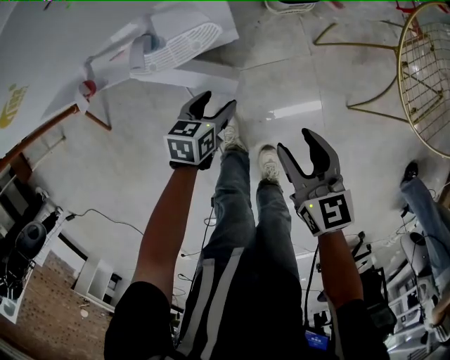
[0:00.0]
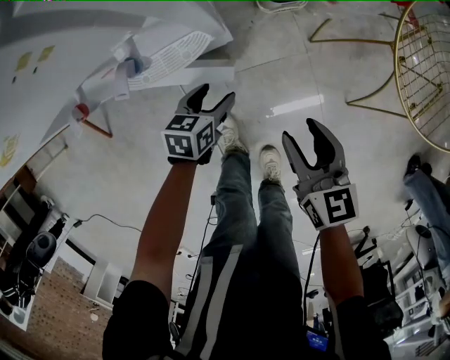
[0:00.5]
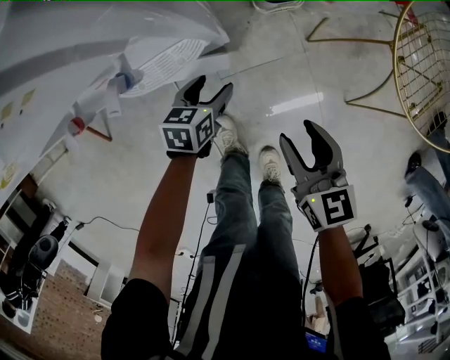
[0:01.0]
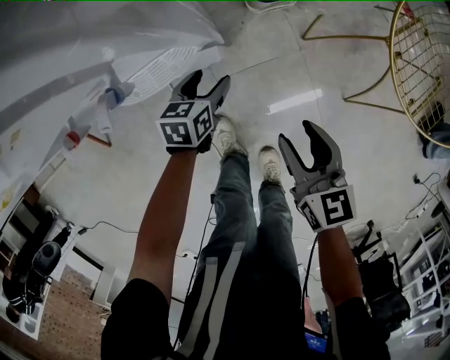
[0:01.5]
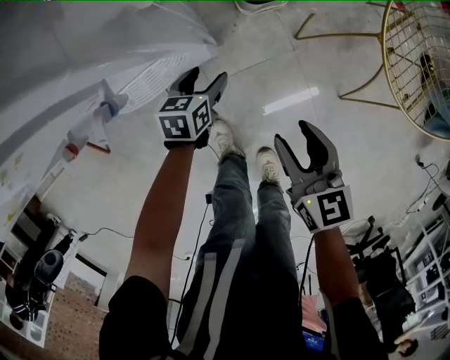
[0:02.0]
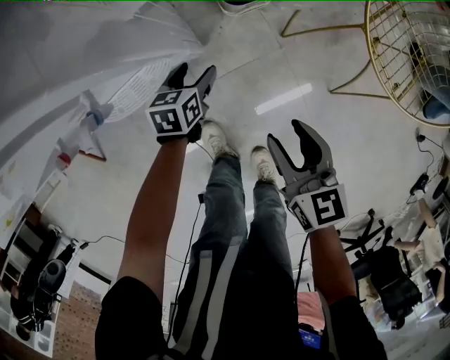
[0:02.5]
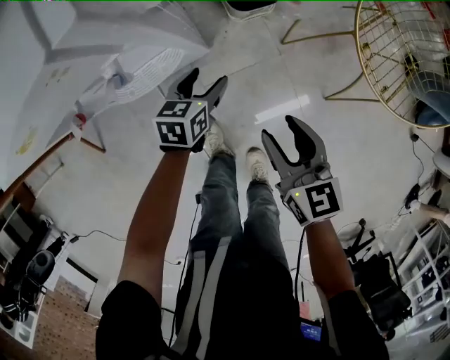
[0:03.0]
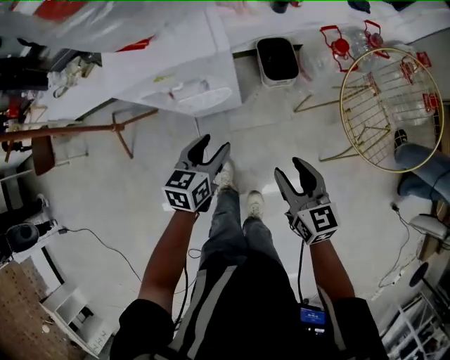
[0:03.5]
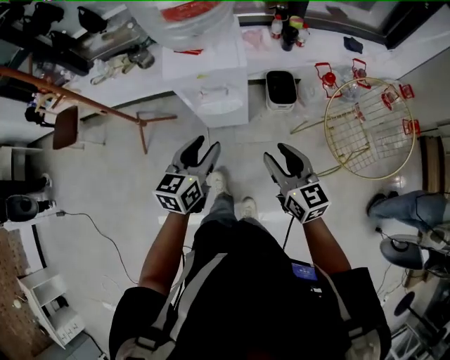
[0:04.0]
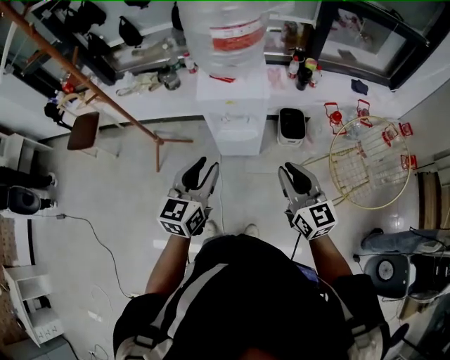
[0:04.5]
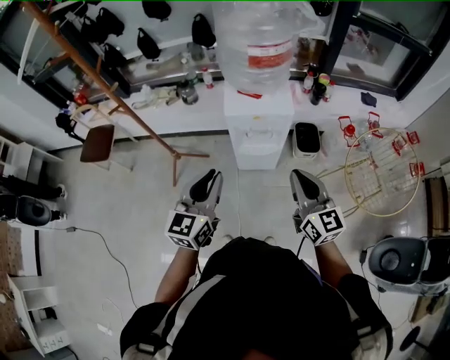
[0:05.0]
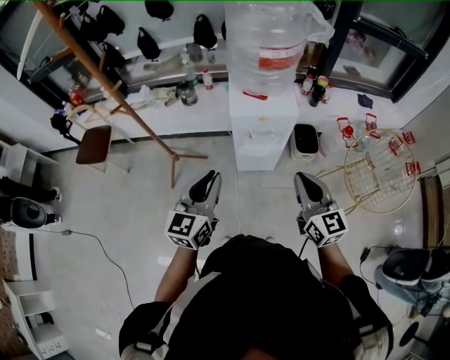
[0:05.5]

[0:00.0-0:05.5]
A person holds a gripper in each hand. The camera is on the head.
0:00.0 to 0:02.0: The right gripper is displaced forward by about 5 cm. Meanwhile the left gripper travels forward by some 10 cm.
0:02.0 to 0:03.5: The right gripper heads upward, covering roughly 20 cm, while the left gripper travels upward by approximately 35 cm, and changes its angle by about 20 degrees.
0:03.5 to 0:05.5: The grippers both shift upward and to the left by roughly 40 cm. The left gripper swivels approximately 40 degrees, and closes its fingers; the right gripper rotates about 30 degrees, and closes.

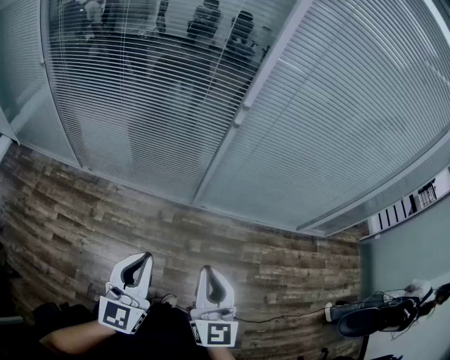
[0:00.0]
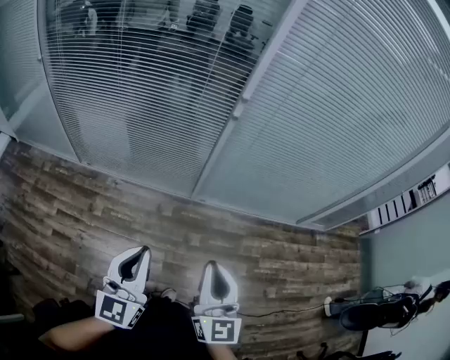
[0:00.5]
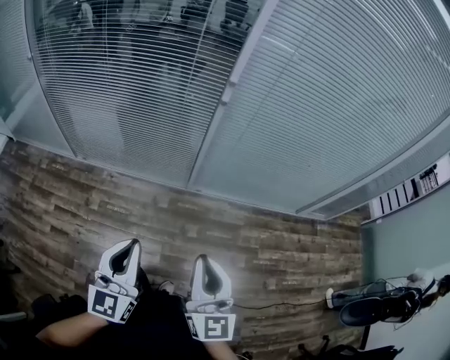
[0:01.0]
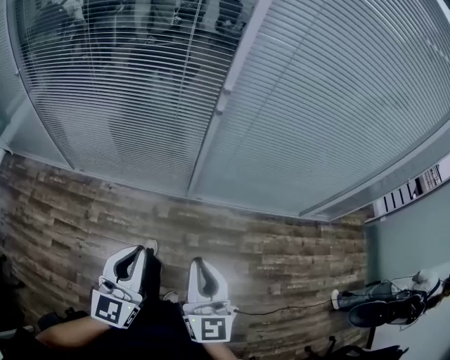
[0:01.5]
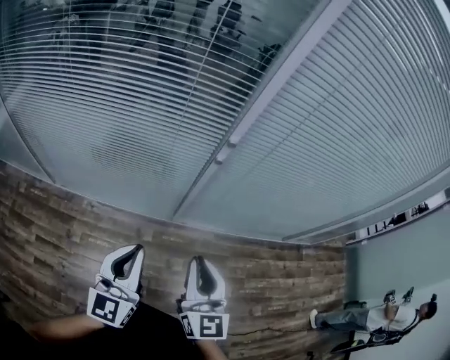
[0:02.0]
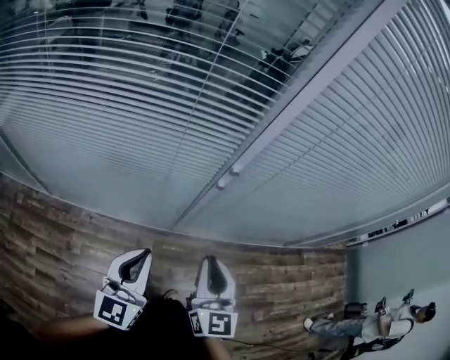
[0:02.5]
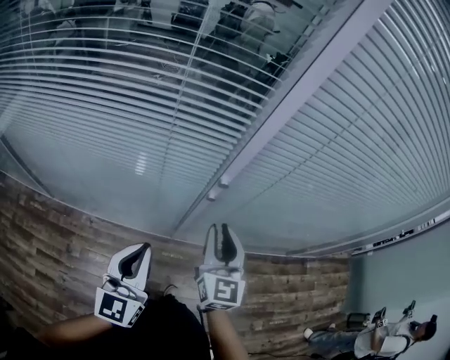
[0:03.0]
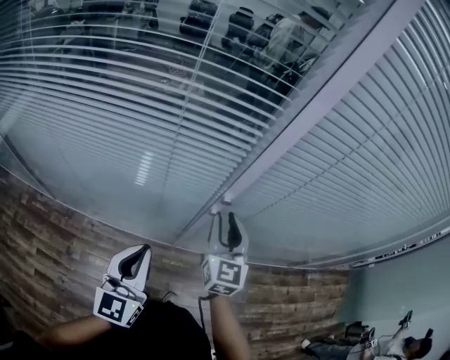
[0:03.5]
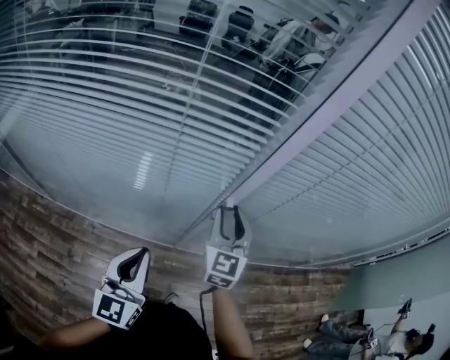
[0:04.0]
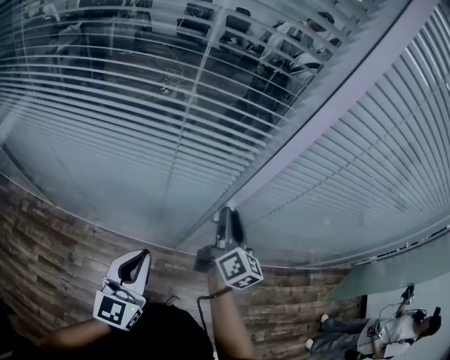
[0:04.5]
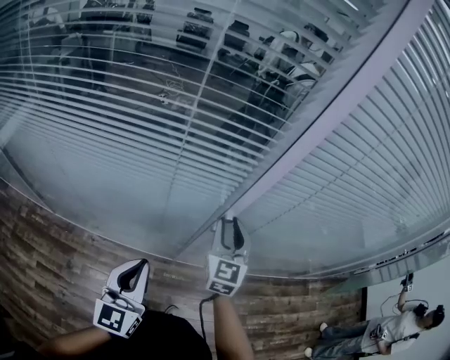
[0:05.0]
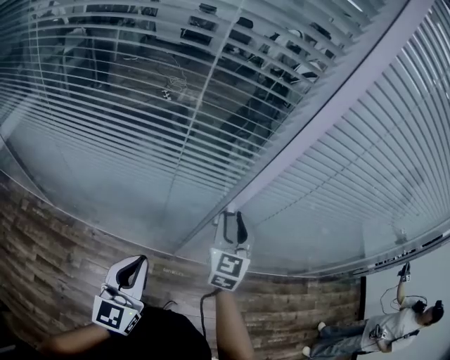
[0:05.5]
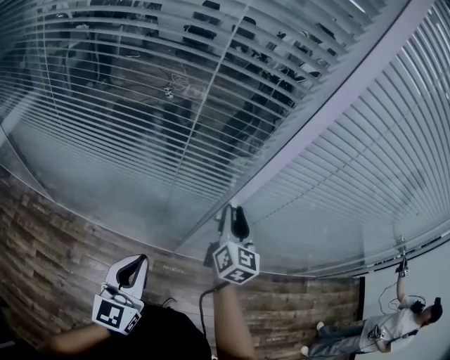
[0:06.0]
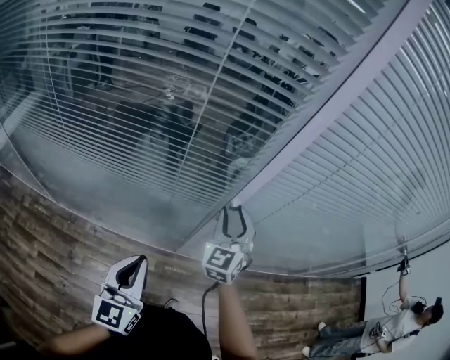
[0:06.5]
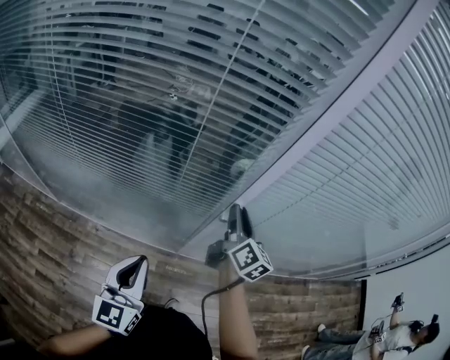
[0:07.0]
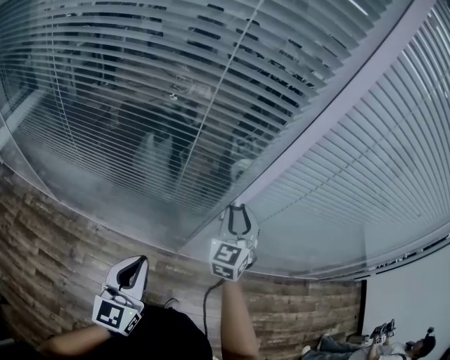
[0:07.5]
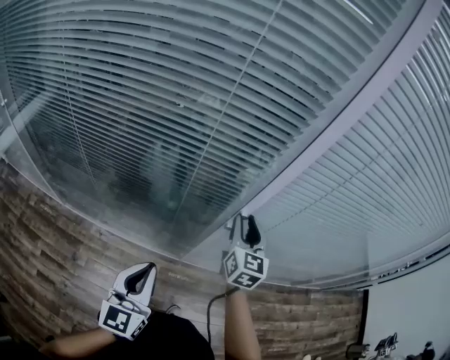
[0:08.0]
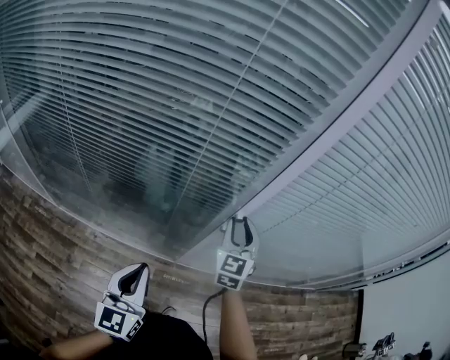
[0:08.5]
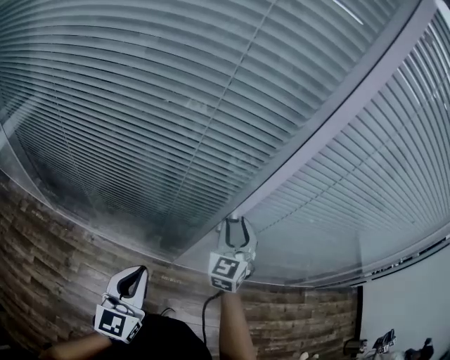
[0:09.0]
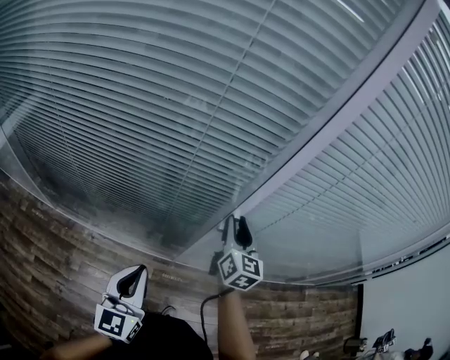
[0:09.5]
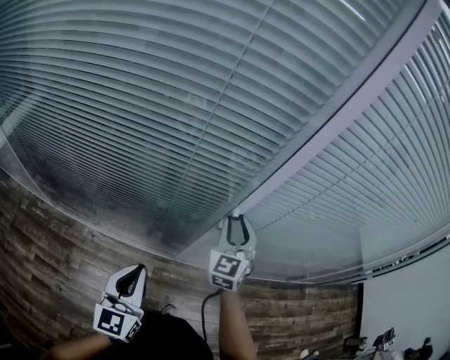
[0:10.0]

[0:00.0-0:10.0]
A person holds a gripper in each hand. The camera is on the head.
0:00.0 to 0:02.0: The grippers both shift forward by about 25 cm.
0:02.0 to 0:04.0: The right gripper moves forward, approximately 30 cm, and opens up. The left gripper travels forward by roughly 15 cm.
0:04.0 to 0:06.0: The right gripper changes its angle by some 30 degrees.
0:08.0 to 0:10.0: The right gripper turns by roughly 30 degrees.

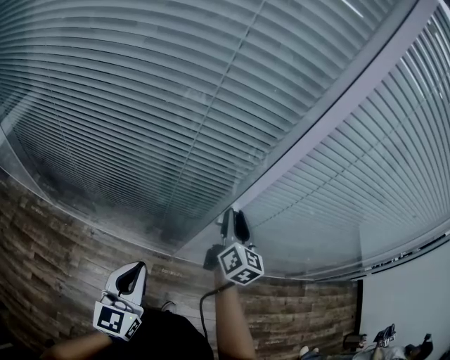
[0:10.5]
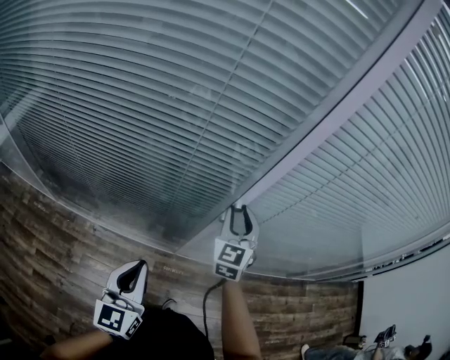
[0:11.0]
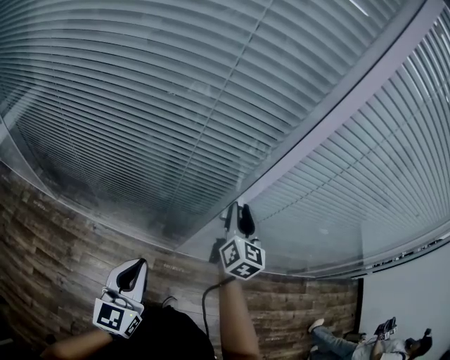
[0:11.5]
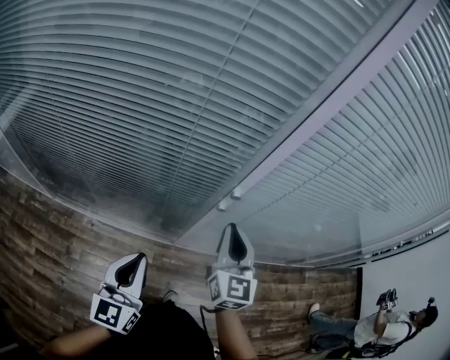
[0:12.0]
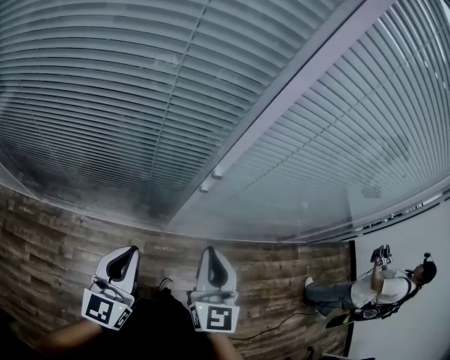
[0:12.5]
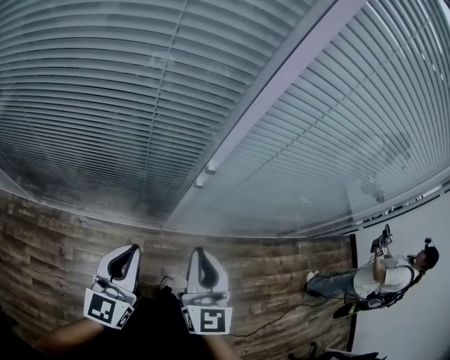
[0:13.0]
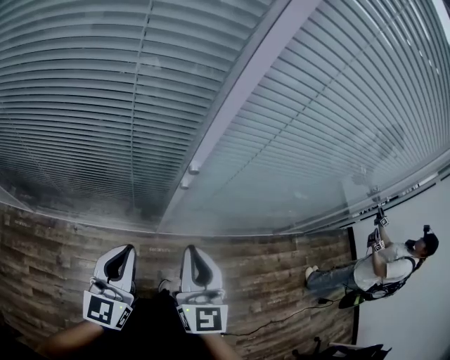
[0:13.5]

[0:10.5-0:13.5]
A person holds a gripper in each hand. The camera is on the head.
0:10.5 to 0:12.0: The right gripper shifts roughly 10 cm backward, changes its angle by about 20 degrees, and closes.
0:12.0 to 0:13.5: The left gripper heads to the right, covering some 5 cm. The right gripper shifts approximately 10 cm backward.

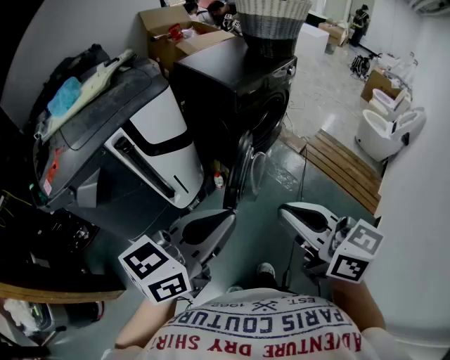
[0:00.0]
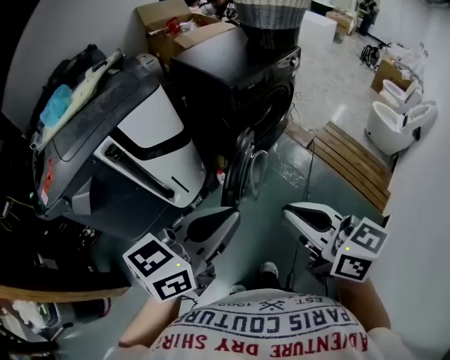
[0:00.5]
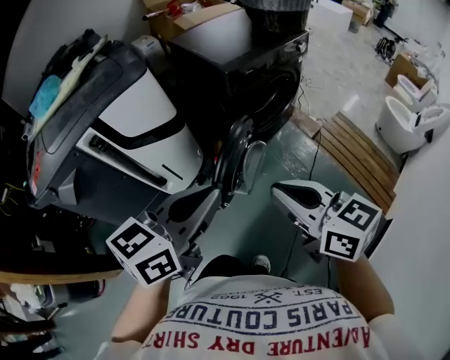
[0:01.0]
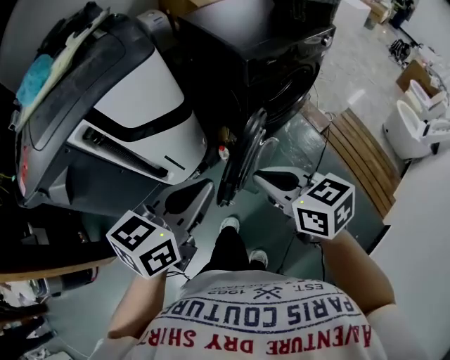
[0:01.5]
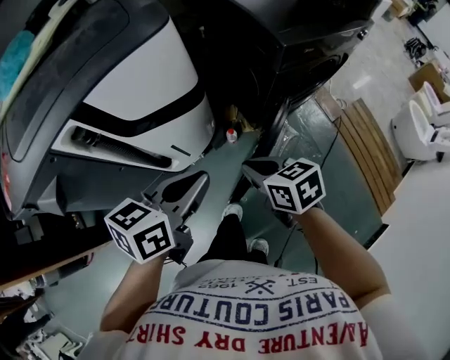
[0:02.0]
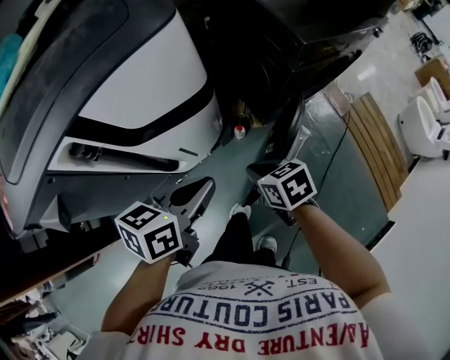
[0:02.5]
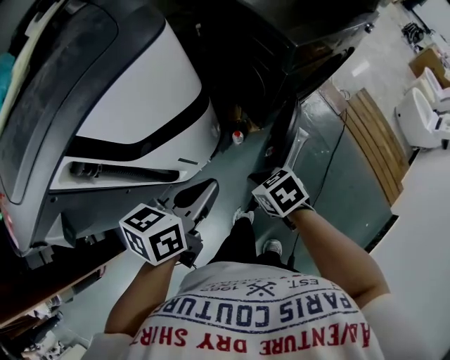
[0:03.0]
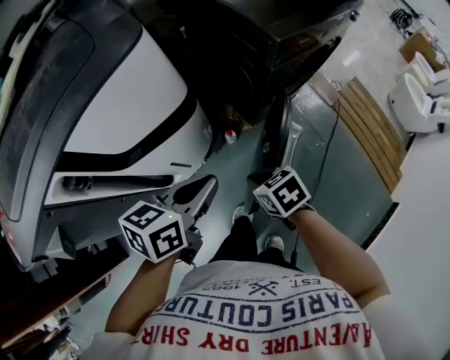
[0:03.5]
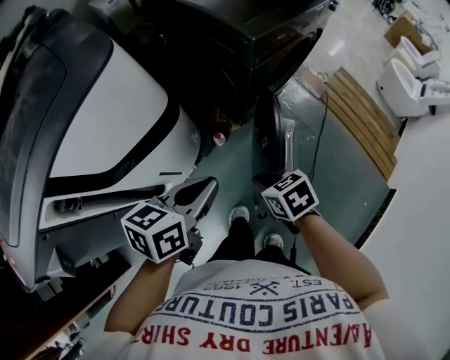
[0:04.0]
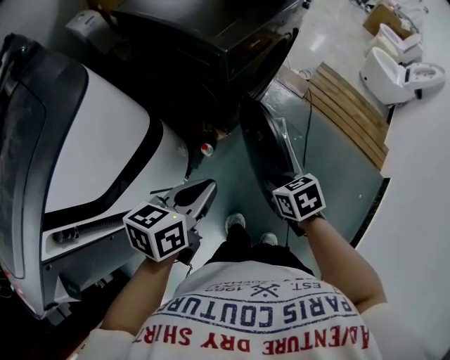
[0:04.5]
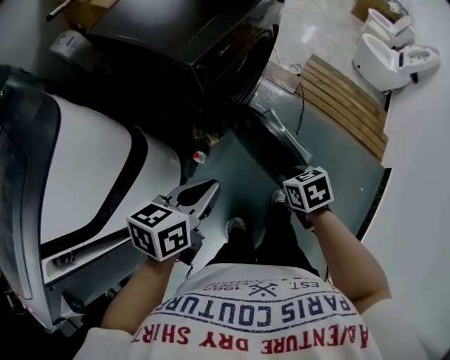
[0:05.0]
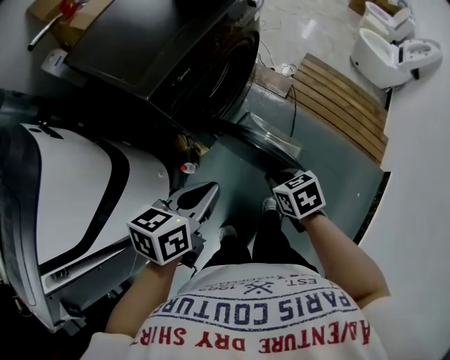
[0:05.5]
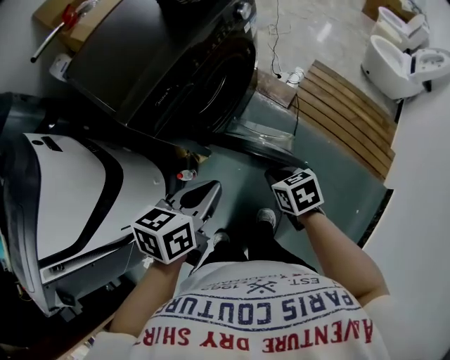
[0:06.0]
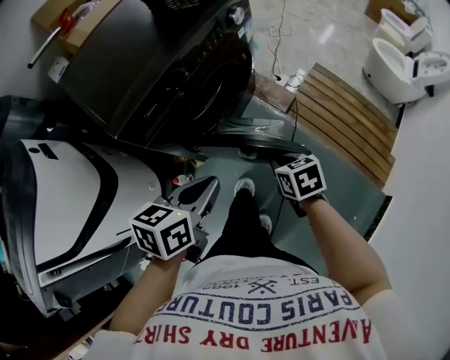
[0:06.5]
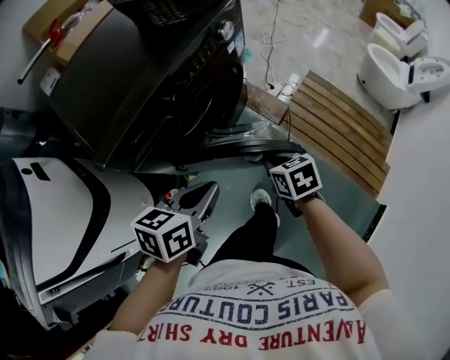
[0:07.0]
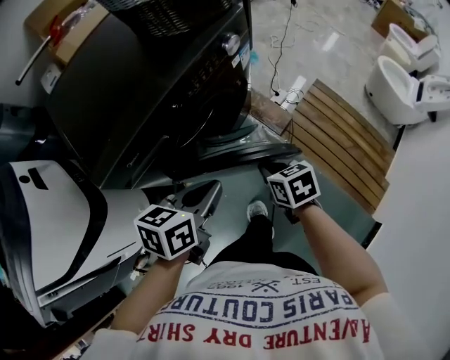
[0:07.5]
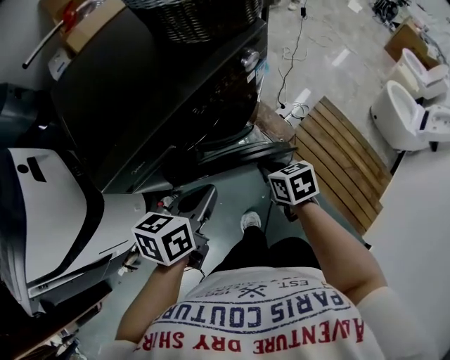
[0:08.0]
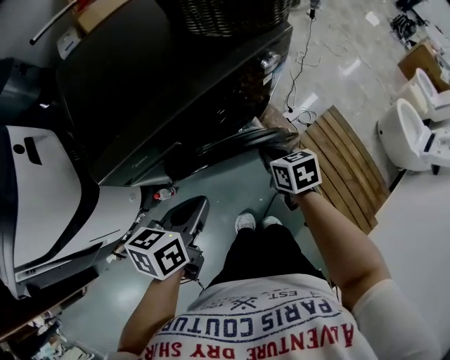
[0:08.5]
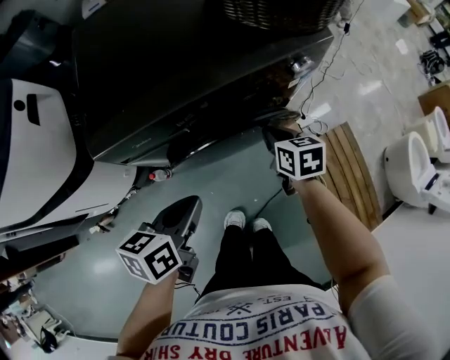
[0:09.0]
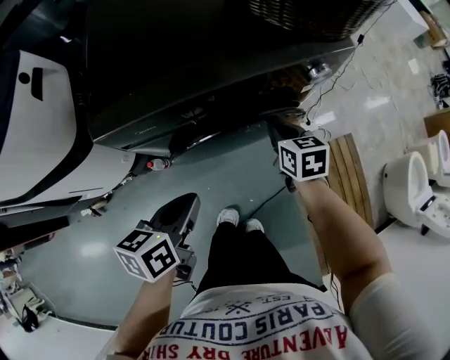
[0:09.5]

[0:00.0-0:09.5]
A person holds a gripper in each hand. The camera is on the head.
0:00.0 to 0:02.0: Both grippers travel together forward and downward, some 35 cm. The right gripper points its fingers approximately 30 degrees further downward. The left gripper turns by roughly 30 degrees.
0:02.0 to 0:04.0: The two grippers go approximately 10 cm downward.
0:04.0 to 0:05.5: The grippers both shift to the right and forward by some 25 cm.
0:05.5 to 0:07.5: The two grippers go about 25 cm forward and to the right.
0:07.5 to 0:09.5: The left gripper is displaced to the left by approximately 5 cm, and changes its angle by about 40 degrees. The right gripper moves forward, some 20 cm, and rotates about 20 degrees.
